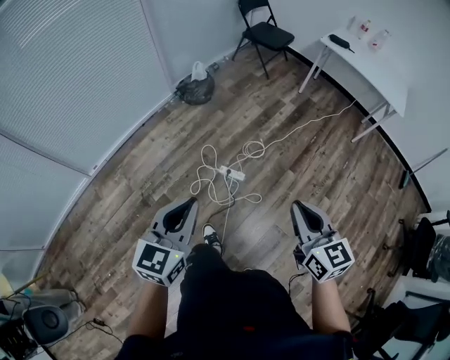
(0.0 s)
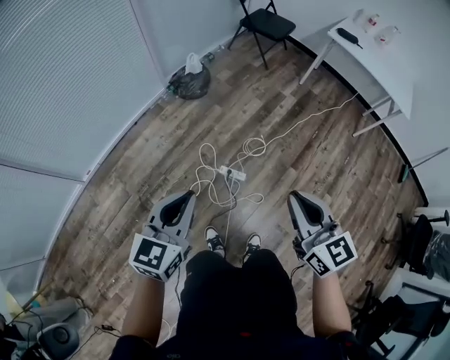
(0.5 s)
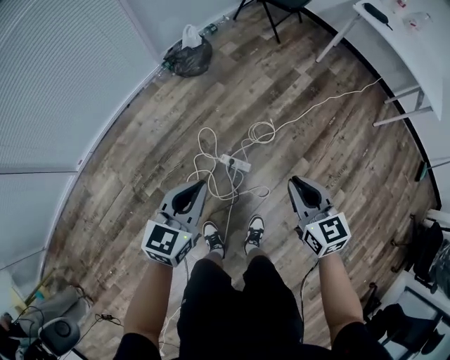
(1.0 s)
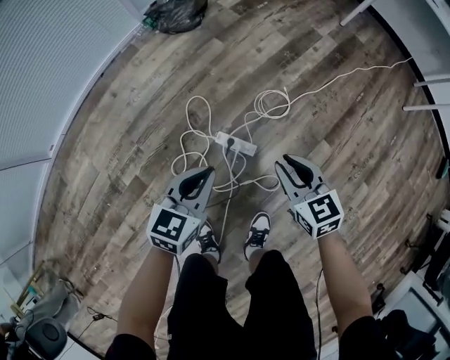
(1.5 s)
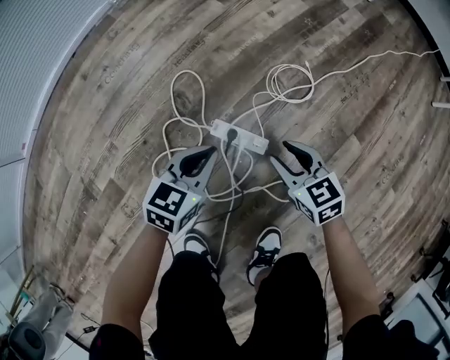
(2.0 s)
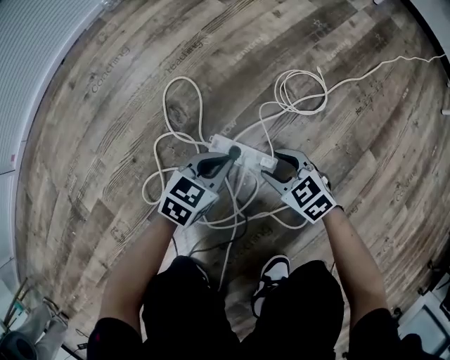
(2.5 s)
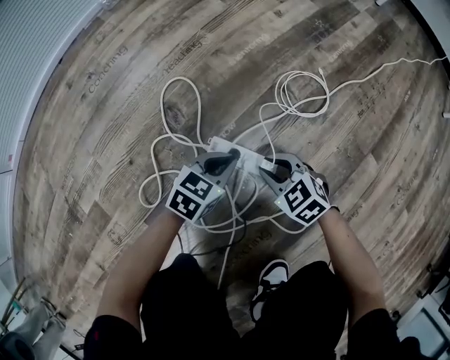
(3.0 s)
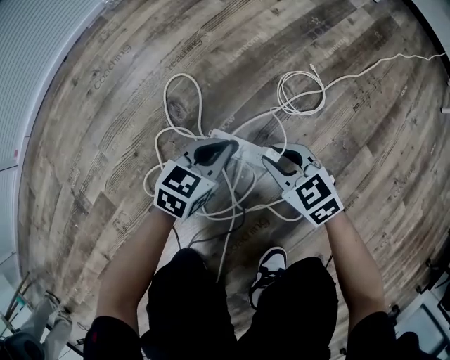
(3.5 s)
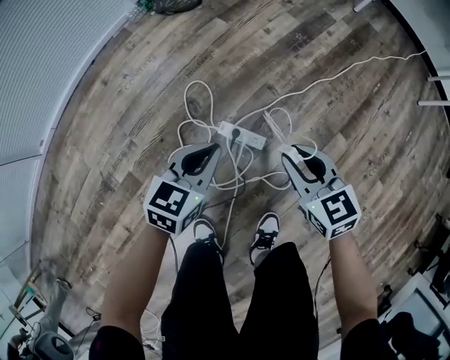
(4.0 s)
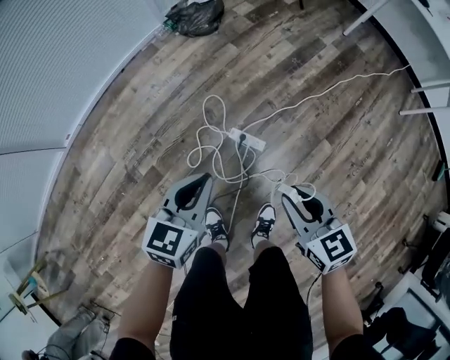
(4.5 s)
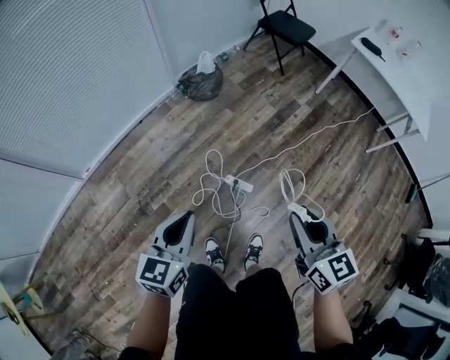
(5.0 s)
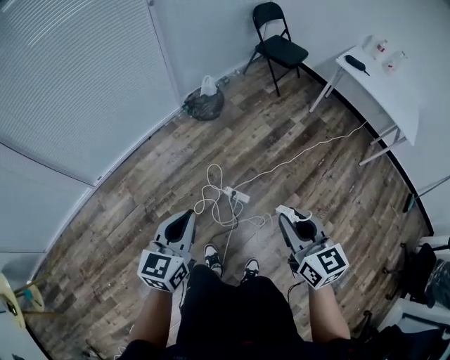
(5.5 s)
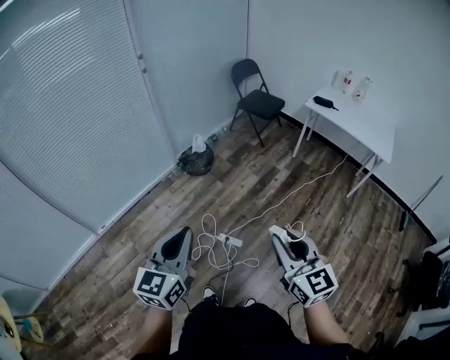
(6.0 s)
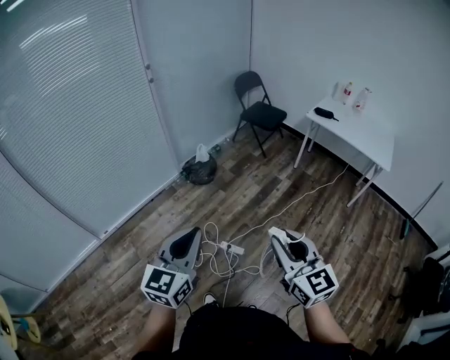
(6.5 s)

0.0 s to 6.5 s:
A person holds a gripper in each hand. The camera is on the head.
0.0 to 2.0 s: Both grippers move downward, roughly 80 cm. The left gripper changes its angle by approximately 30 degrees, while the right gripper changes its angle by some 30 degrees, and opens.
2.0 to 4.5 s: The two grippers go some 40 cm upward.
4.5 to 6.5 s: Both grippers travel together upward, roughly 50 cm. The left gripper turns by approximately 30 degrees. The right gripper rotates roughly 30 degrees.

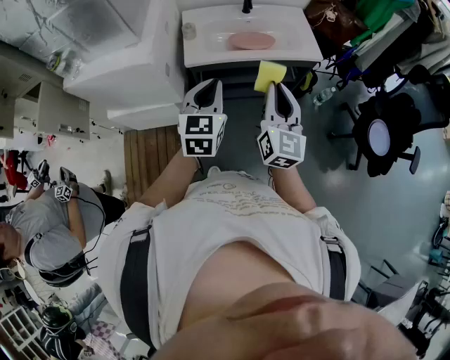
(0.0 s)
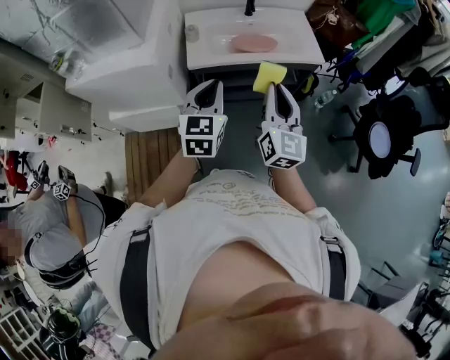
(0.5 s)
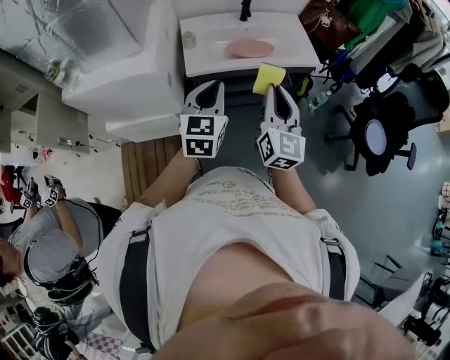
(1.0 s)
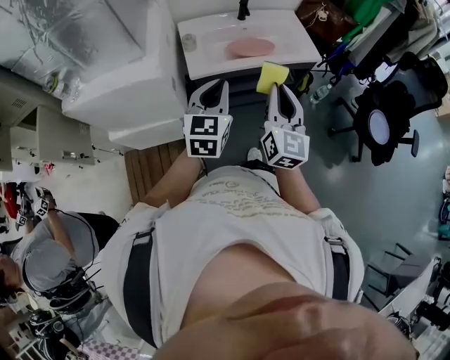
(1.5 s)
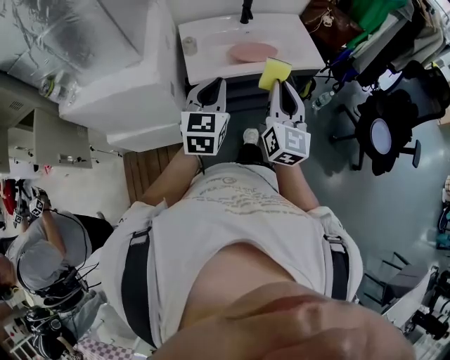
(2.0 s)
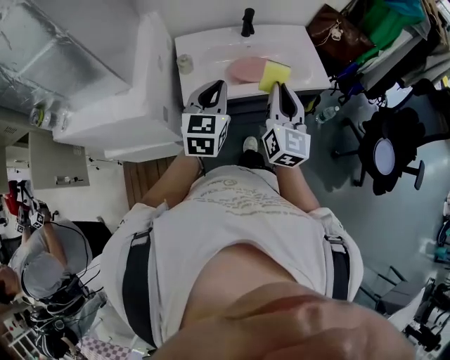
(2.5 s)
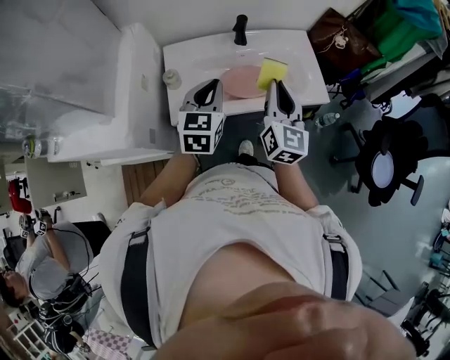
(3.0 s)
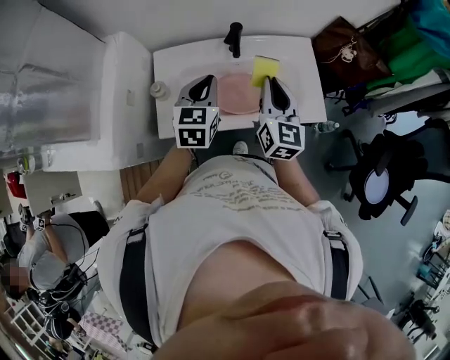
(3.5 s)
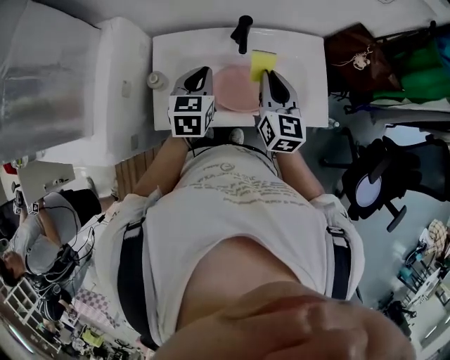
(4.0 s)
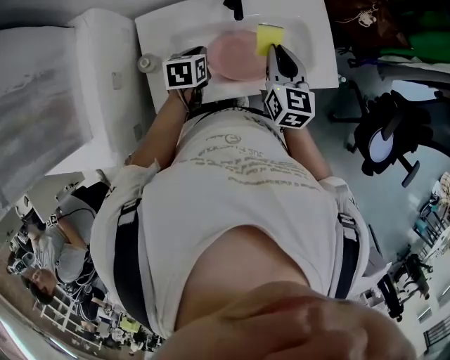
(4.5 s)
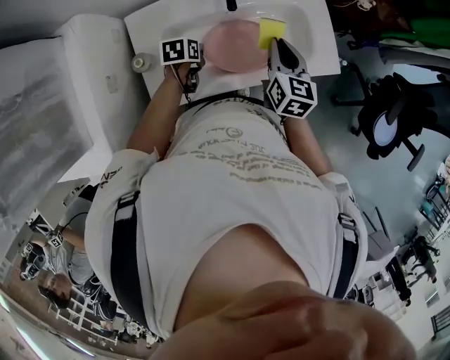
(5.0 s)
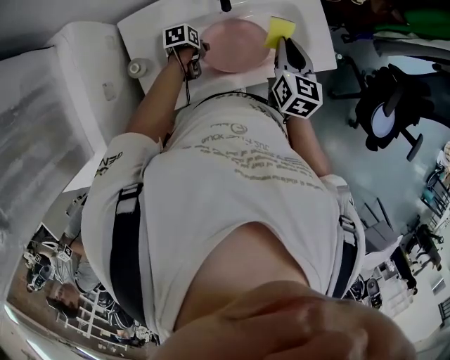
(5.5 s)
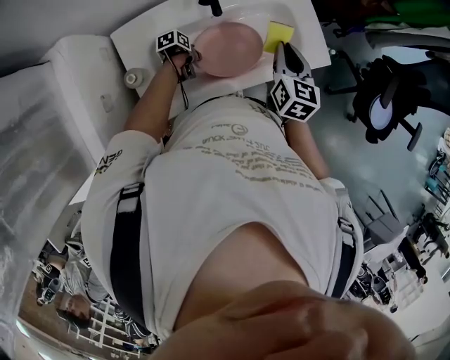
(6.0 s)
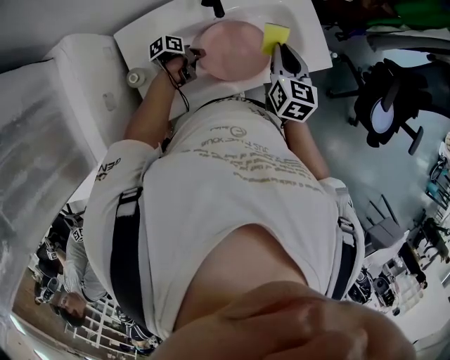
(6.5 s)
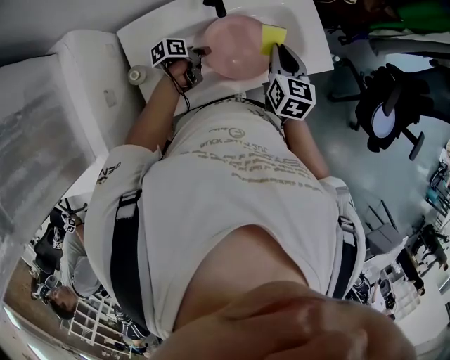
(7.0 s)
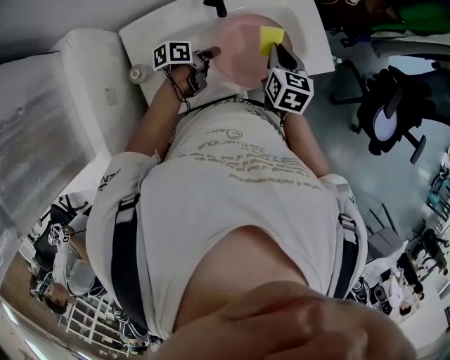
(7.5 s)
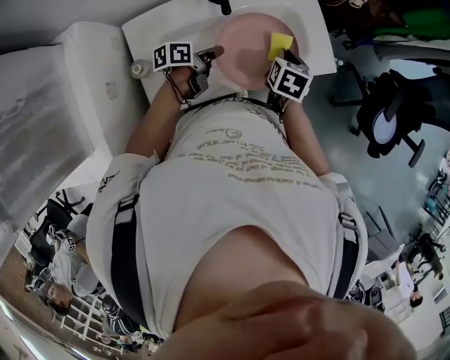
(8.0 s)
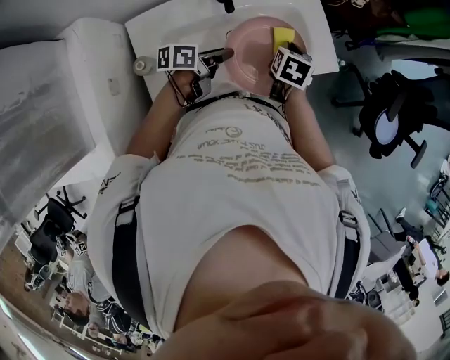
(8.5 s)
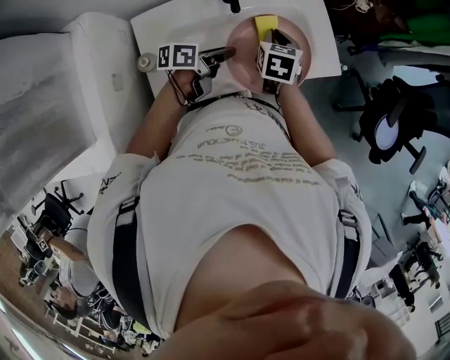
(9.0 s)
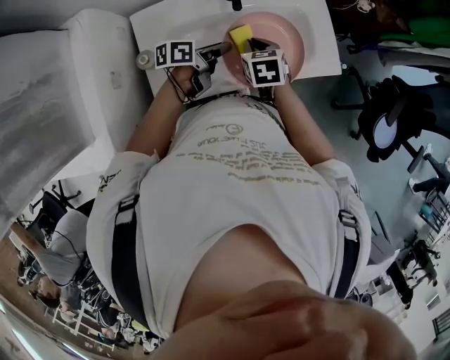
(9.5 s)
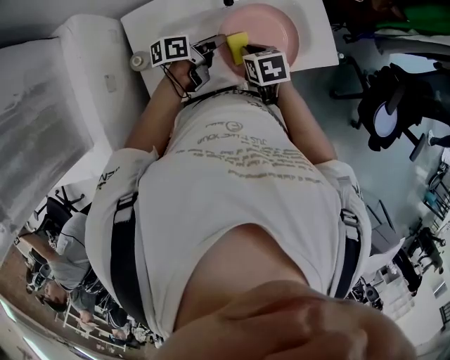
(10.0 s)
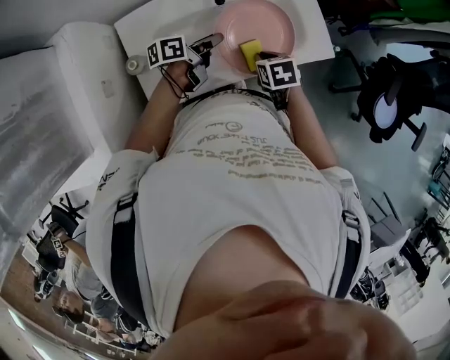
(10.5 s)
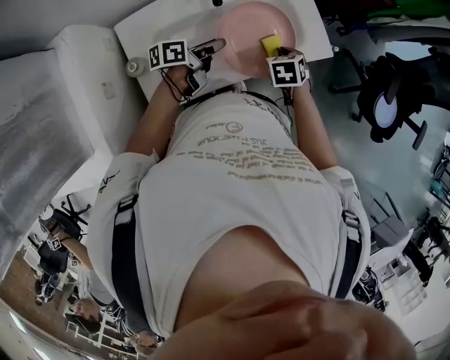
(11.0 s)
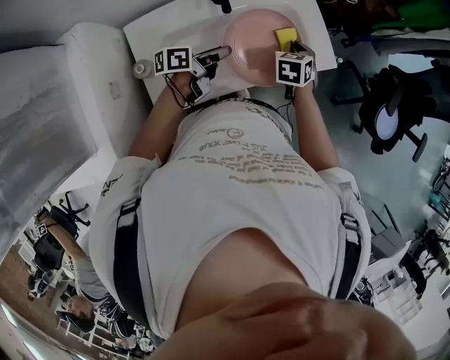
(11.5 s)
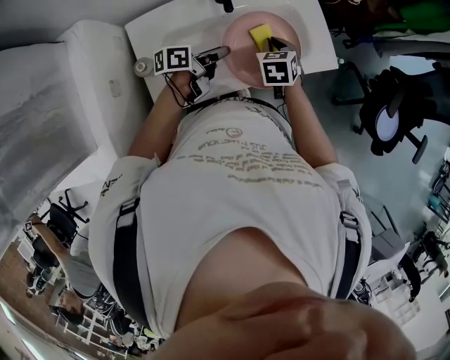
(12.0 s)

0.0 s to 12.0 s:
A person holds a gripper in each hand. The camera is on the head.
0.0 to 2.0 s: The grippers both shift forward by approximately 5 cm.
2.0 to 4.0 s: Both grippers travel together forward, roughly 40 cm. The right gripper swivels about 30 degrees; the left gripper swivels about 20 degrees.
4.0 to 6.0 s: The left gripper is displaced downward by some 30 cm, rotates about 70 degrees, and opens, then closes once more. The right gripper changes place by some 10 cm, and turns by approximately 30 degrees.
6.0 to 8.0 s: The left gripper heads upward, covering some 15 cm, and rotates roughly 40 degrees, while the right gripper heads downward, covering about 5 cm, and rotates some 20 degrees.
8.0 to 10.0 s: The right gripper ends up some 15 cm from where it was, and swivels approximately 30 degrees.
10.0 to 12.0 s: The right gripper swivels roughly 20 degrees.

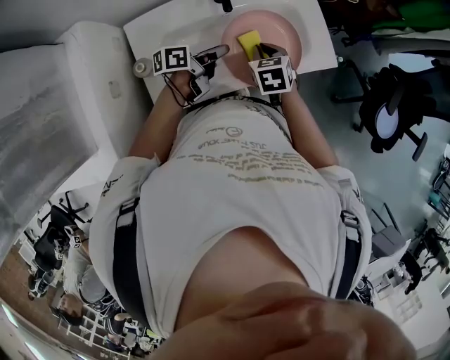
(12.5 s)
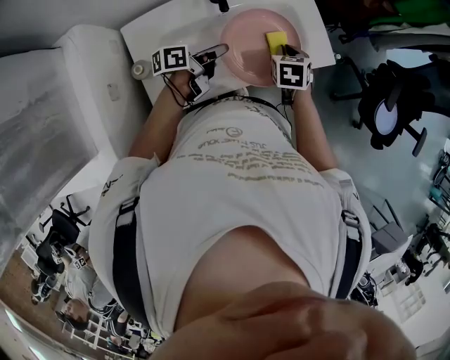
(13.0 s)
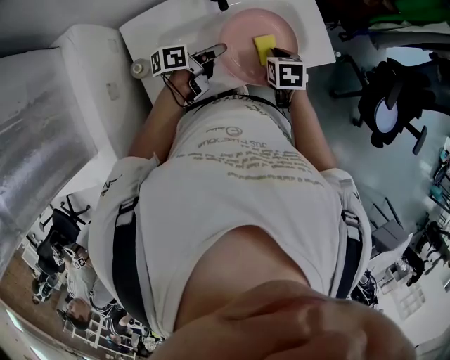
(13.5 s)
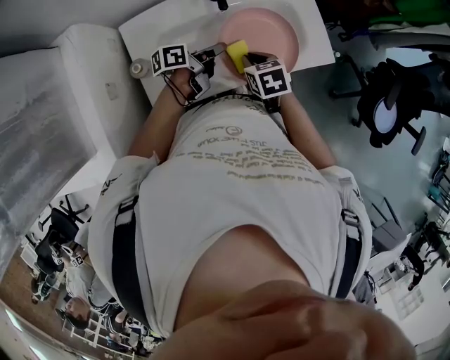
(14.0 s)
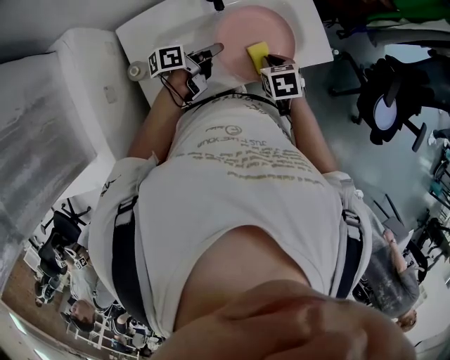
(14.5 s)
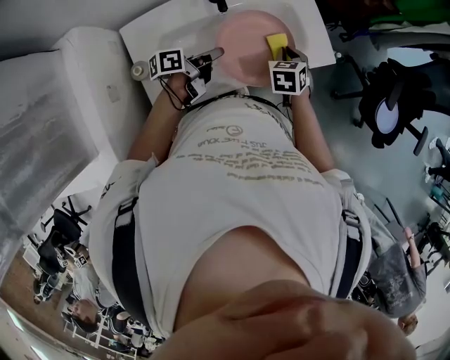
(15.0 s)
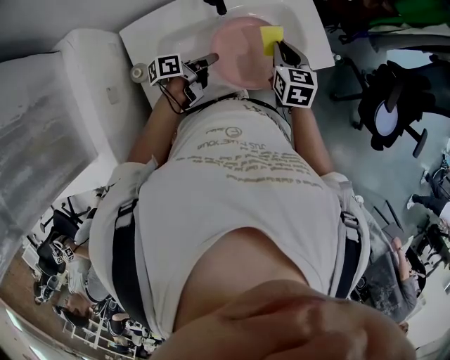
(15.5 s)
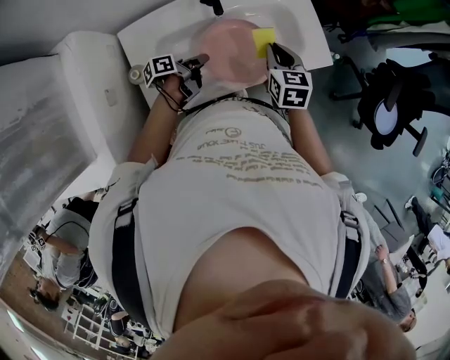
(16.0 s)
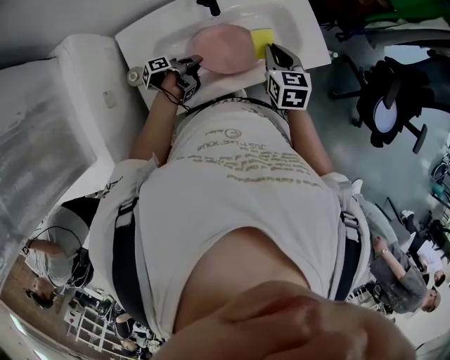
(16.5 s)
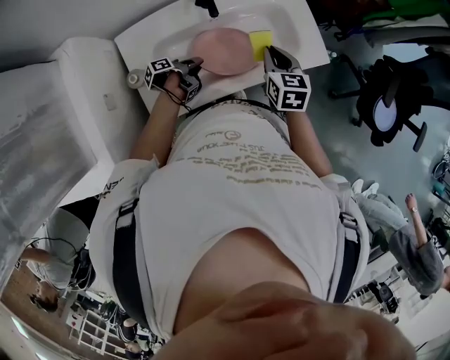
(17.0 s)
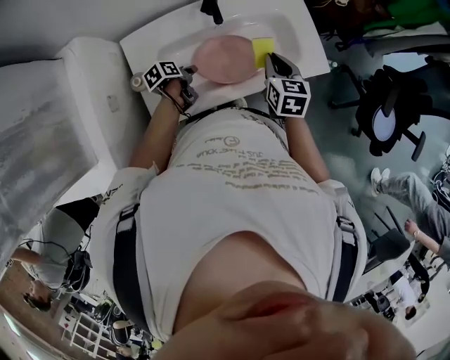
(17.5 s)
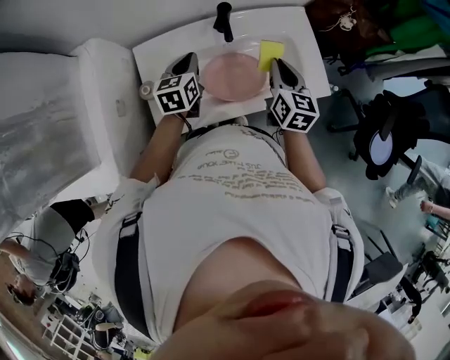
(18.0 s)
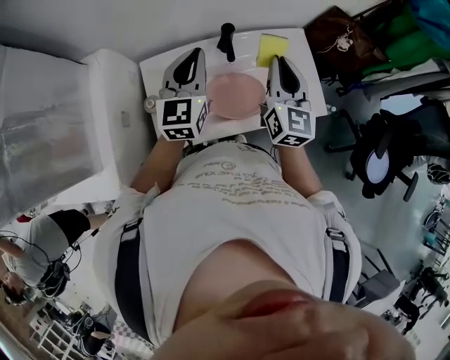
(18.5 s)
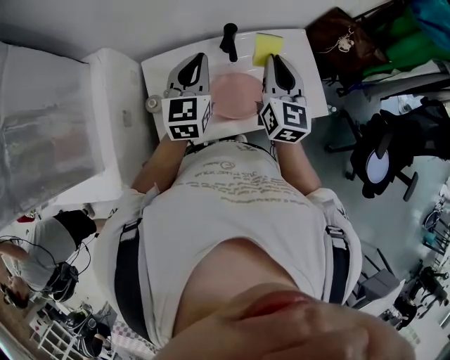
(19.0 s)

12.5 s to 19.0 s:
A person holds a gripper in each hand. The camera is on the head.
12.5 to 14.5 s: The right gripper goes left and right, some 10 cm each way, reversing 2 times.
14.5 to 17.0 s: The right gripper is displaced upward by some 5 cm, and swivels approximately 30 degrees; the left gripper heads downward and to the left, covering some 15 cm, and rotates approximately 40 degrees.
17.0 to 19.0 s: The right gripper is displaced upward by approximately 15 cm, and angles its fingers upward, by roughly 30 degrees, while the left gripper goes approximately 35 cm upward, and rolls clockwise, seen from behind, by some 90 degrees.

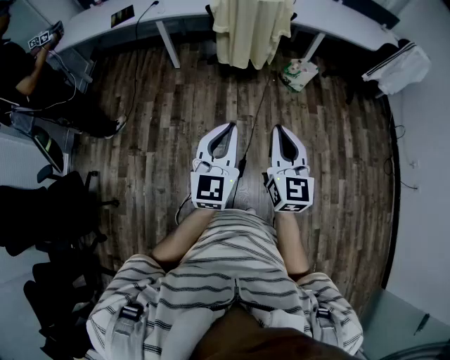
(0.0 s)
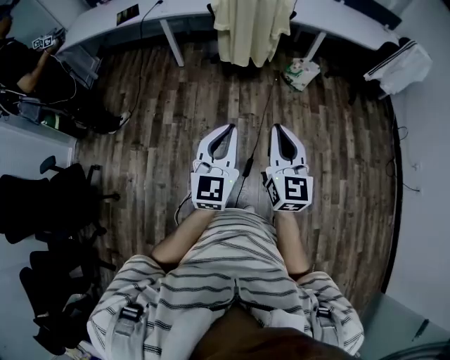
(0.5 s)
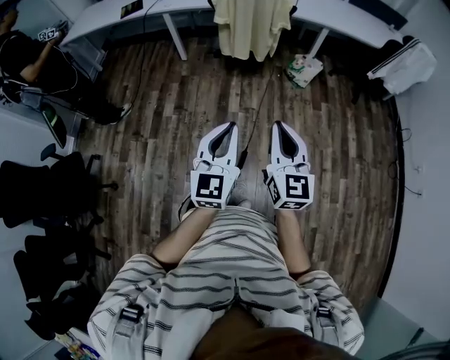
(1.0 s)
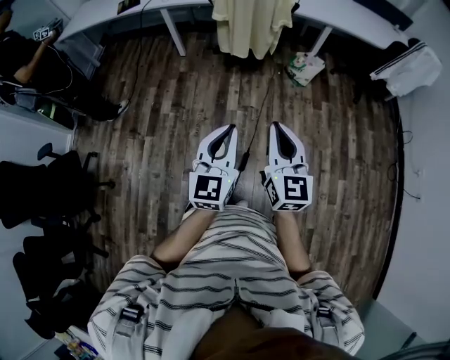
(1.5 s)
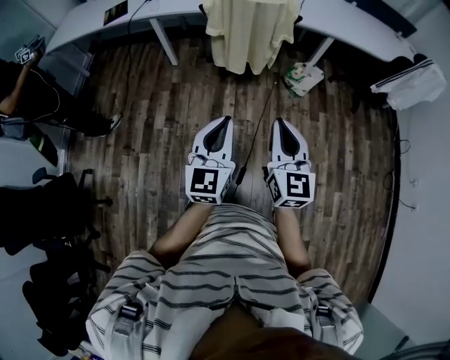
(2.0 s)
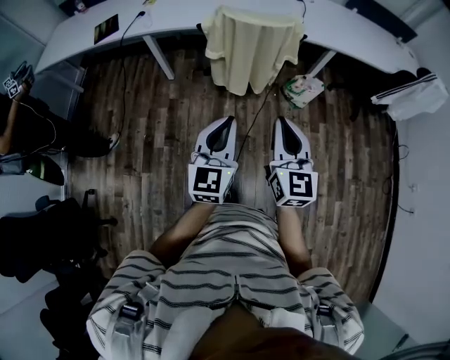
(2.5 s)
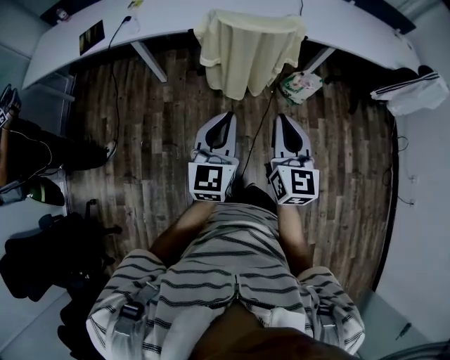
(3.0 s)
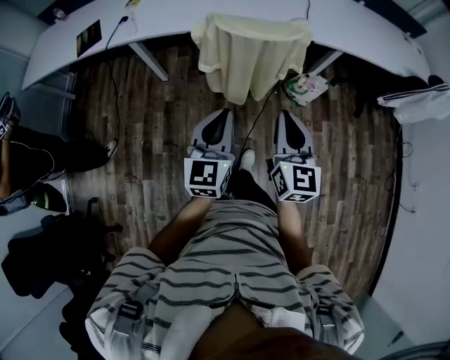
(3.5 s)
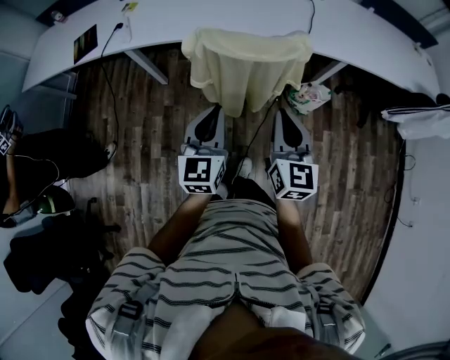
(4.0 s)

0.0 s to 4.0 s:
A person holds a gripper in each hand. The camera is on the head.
0.0 to 2.0 s: The grippers both shift forward by about 15 cm.
2.0 to 4.0 s: The two grippers travel together, forward, roughly 40 cm.
